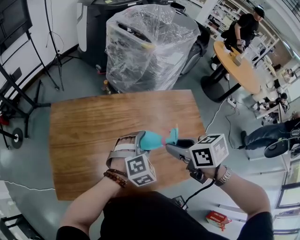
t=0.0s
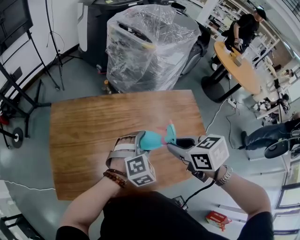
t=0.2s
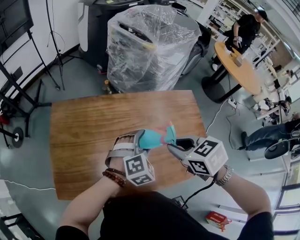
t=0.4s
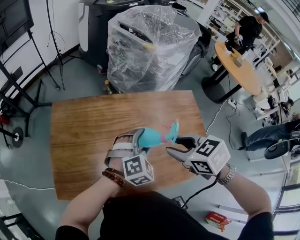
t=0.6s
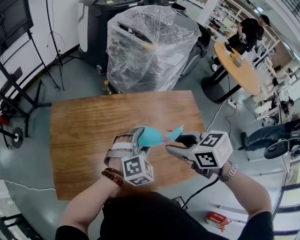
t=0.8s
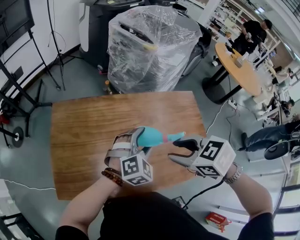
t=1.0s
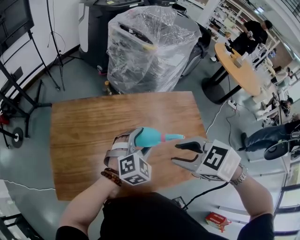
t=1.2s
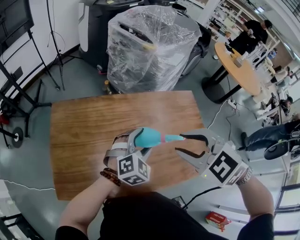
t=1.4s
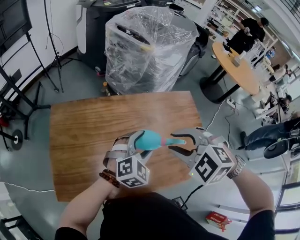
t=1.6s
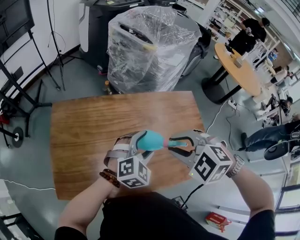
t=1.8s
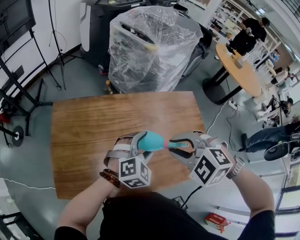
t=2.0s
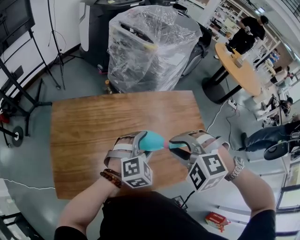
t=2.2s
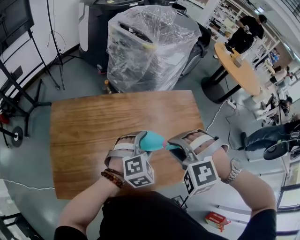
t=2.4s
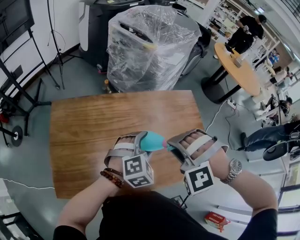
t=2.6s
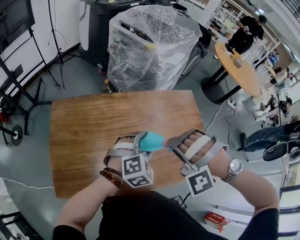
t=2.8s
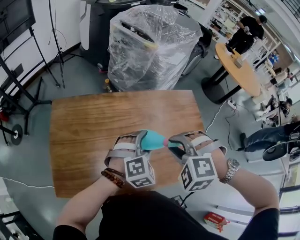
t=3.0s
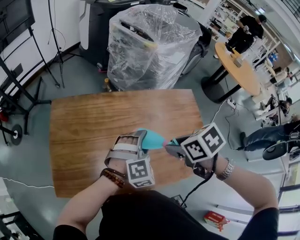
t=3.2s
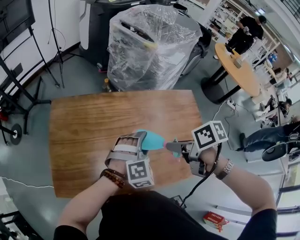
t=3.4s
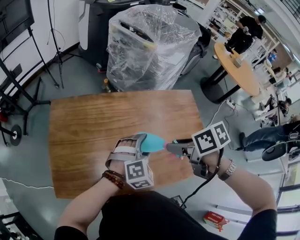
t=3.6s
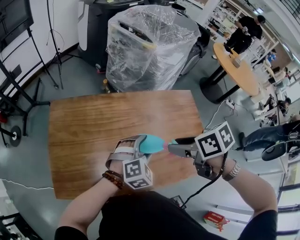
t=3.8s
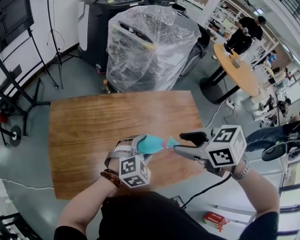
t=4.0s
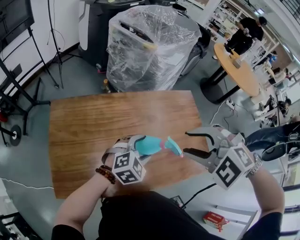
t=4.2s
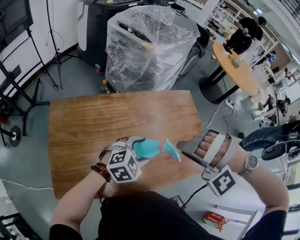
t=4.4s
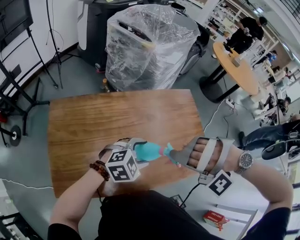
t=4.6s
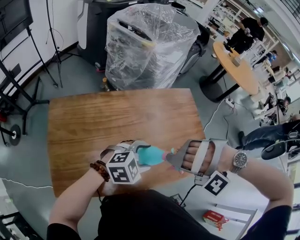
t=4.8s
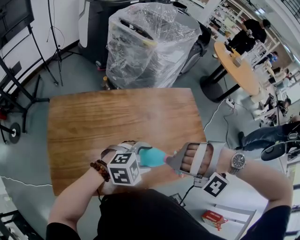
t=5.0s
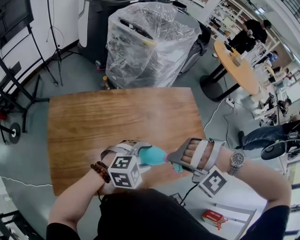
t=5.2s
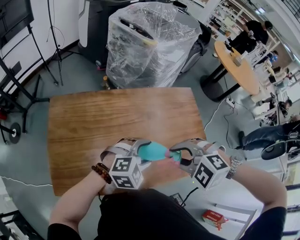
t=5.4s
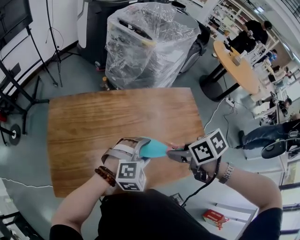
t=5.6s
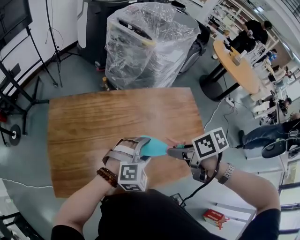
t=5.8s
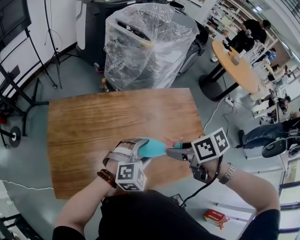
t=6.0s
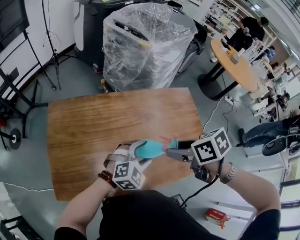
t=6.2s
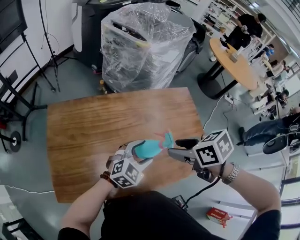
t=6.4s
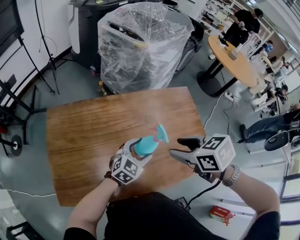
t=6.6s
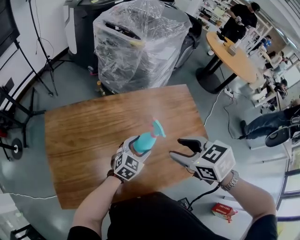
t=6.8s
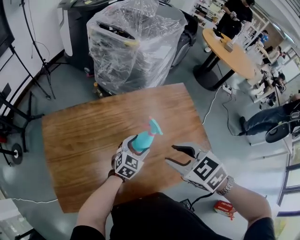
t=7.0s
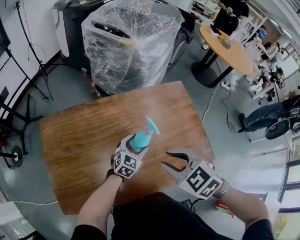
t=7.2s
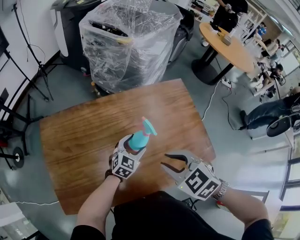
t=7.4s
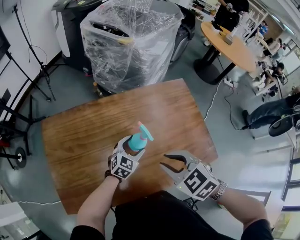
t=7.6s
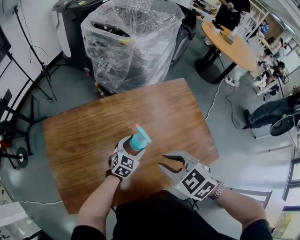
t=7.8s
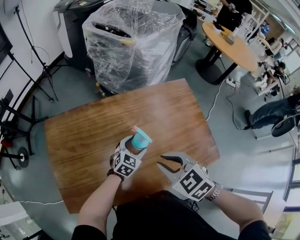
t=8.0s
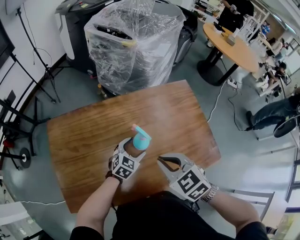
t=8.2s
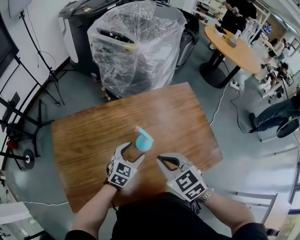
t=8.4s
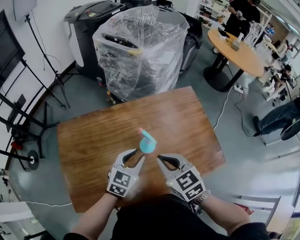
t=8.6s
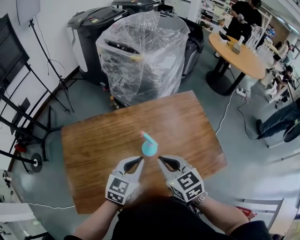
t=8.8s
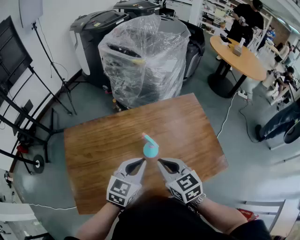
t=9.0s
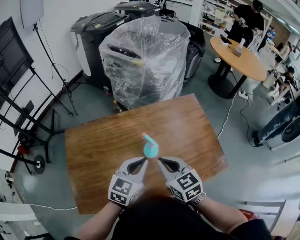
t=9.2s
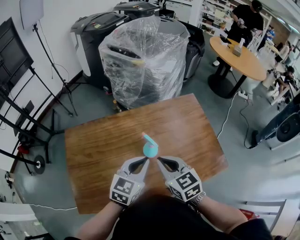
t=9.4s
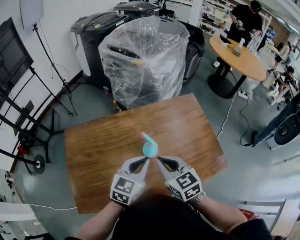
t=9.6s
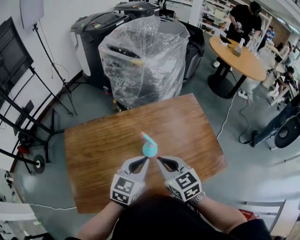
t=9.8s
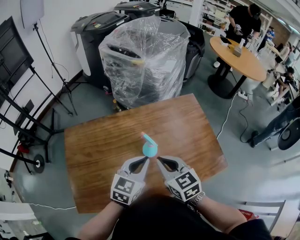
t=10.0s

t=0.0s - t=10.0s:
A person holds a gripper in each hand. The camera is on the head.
t=0.0s - t=1.4s: The right gripper heads upward, covering approximately 10 cm, and twists roughly 50 degrees counterclockwise, seen from behind.
t=1.4s - t=2.8s: The right gripper travels downward by approximately 5 cm, and rolls counterclockwise, seen from behind, by approximately 60 degrees.
t=2.8s - t=4.2s: The right gripper travels upward by about 10 cm, swivels approximately 40 degrees, and opens its fingers.
t=4.2s - t=5.8s: The right gripper goes roughly 10 cm downward, and twists some 90 degrees clockwise, seen from behind.
t=5.8s - t=7.2s: The left gripper moves downward and forward, about 15 cm, and rotates roughly 40 degrees; the right gripper twists some 50 degrees counterclockwise, seen from behind.
t=7.2s - t=8.6s: The right gripper changes its angle by approximately 20 degrees, and closes its fingers; the left gripper moves upward and to the left, approximately 10 cm, and closes.
t=8.6s - t=10.0s: The left gripper heads upward, covering approximately 5 cm.

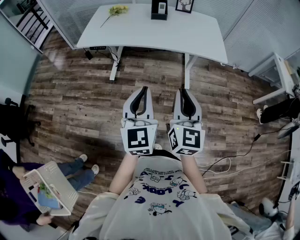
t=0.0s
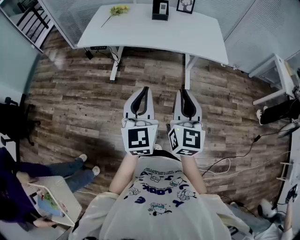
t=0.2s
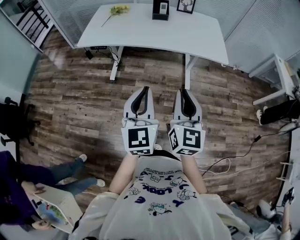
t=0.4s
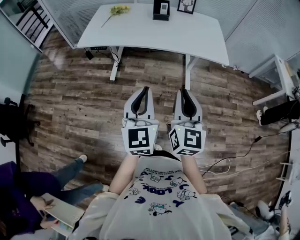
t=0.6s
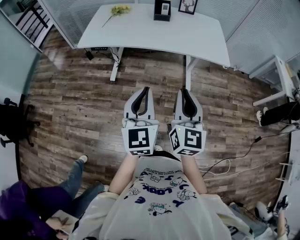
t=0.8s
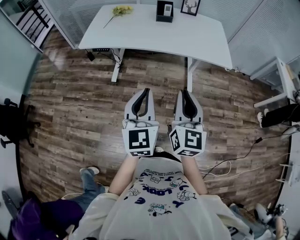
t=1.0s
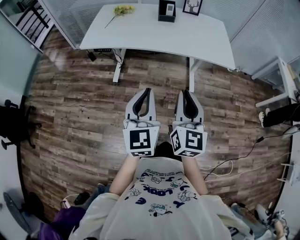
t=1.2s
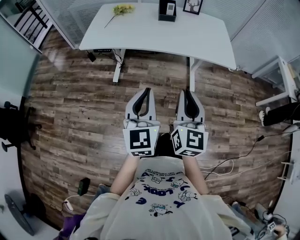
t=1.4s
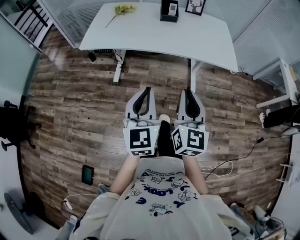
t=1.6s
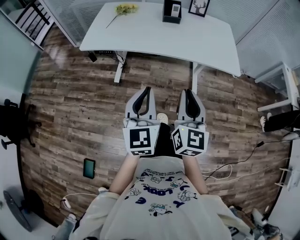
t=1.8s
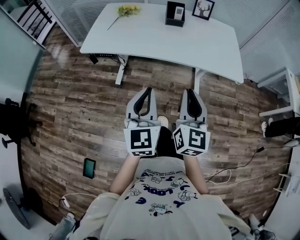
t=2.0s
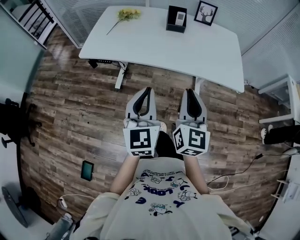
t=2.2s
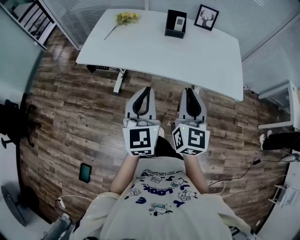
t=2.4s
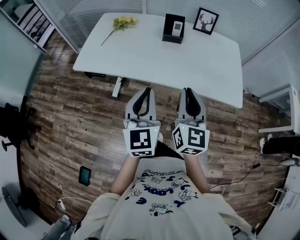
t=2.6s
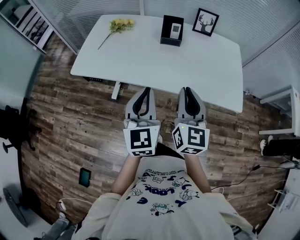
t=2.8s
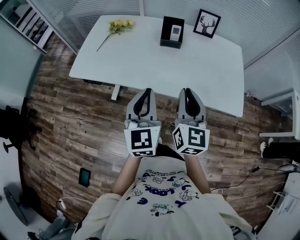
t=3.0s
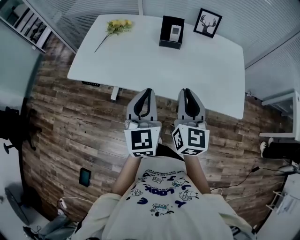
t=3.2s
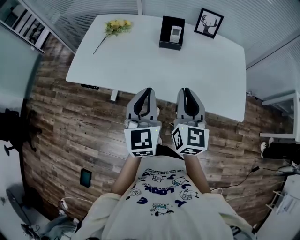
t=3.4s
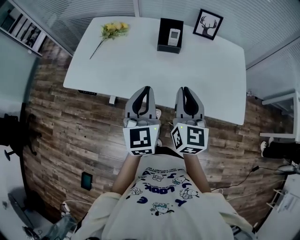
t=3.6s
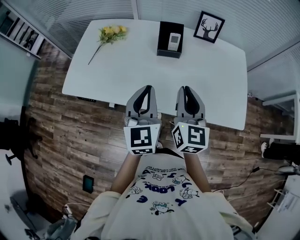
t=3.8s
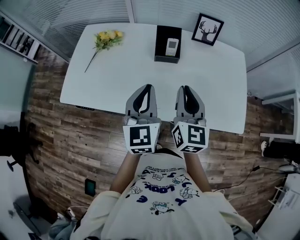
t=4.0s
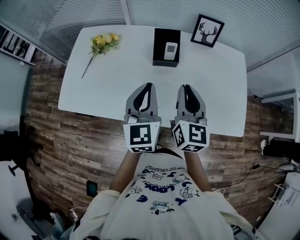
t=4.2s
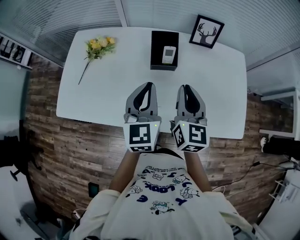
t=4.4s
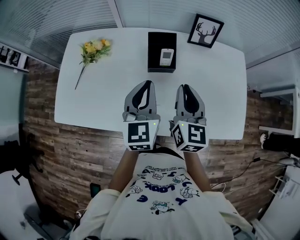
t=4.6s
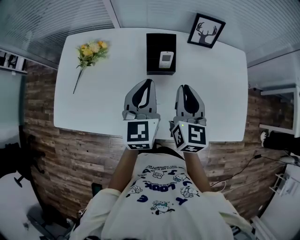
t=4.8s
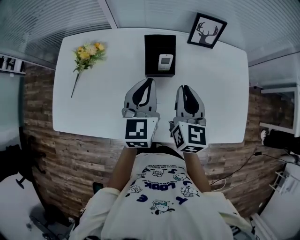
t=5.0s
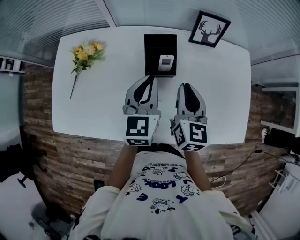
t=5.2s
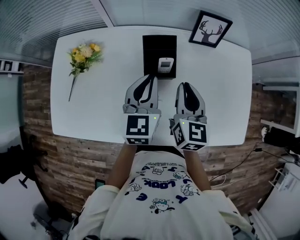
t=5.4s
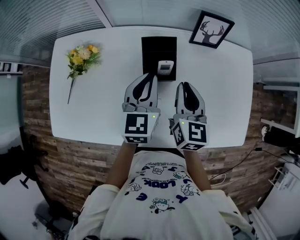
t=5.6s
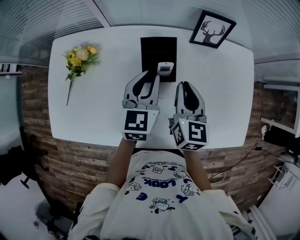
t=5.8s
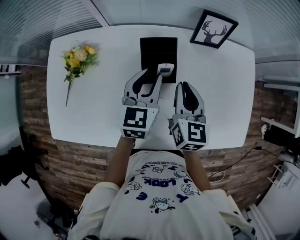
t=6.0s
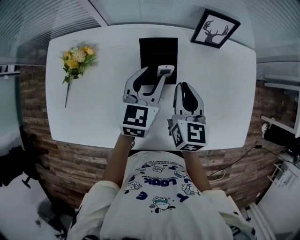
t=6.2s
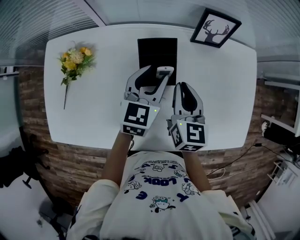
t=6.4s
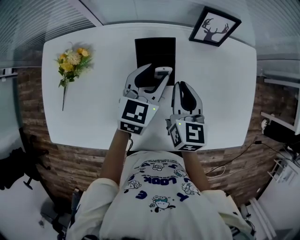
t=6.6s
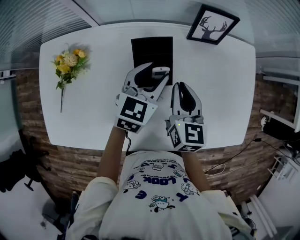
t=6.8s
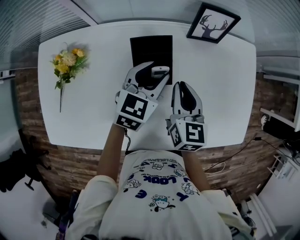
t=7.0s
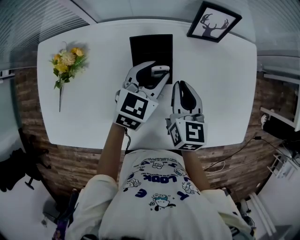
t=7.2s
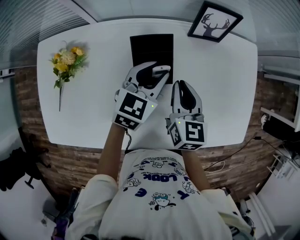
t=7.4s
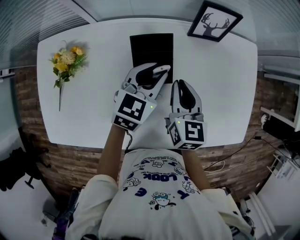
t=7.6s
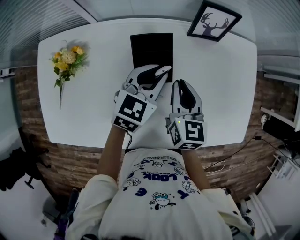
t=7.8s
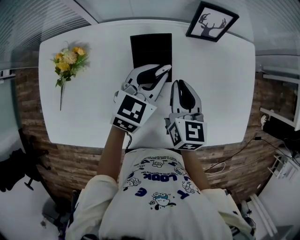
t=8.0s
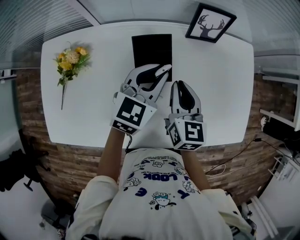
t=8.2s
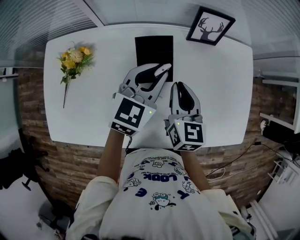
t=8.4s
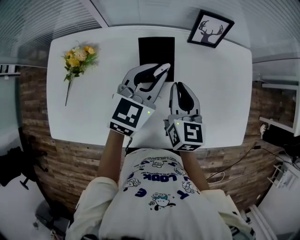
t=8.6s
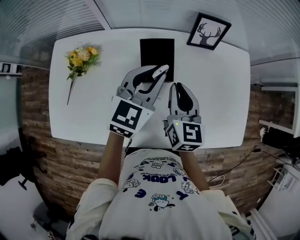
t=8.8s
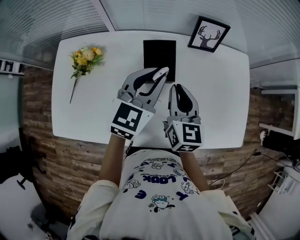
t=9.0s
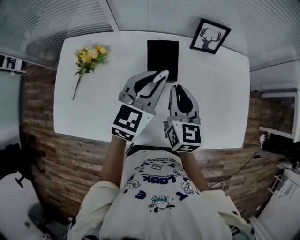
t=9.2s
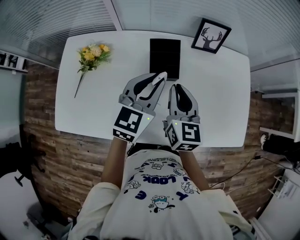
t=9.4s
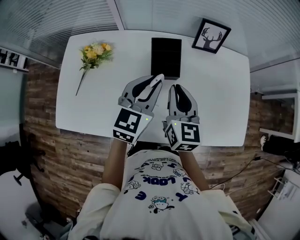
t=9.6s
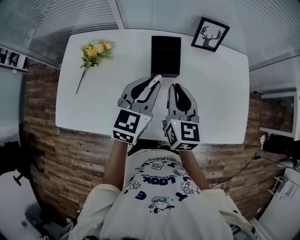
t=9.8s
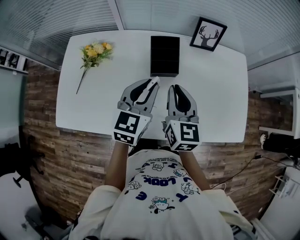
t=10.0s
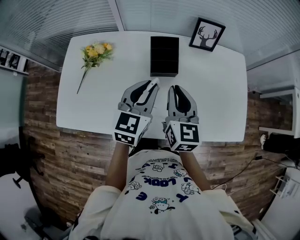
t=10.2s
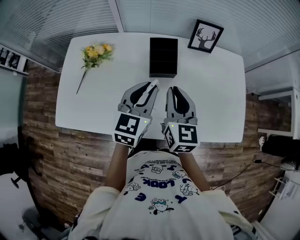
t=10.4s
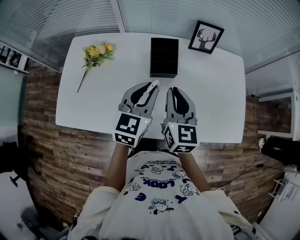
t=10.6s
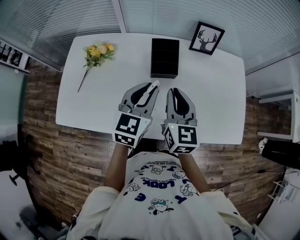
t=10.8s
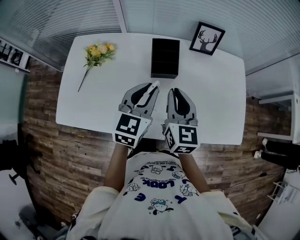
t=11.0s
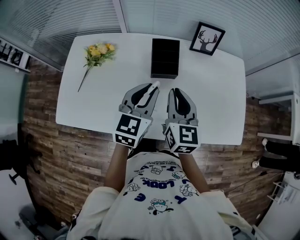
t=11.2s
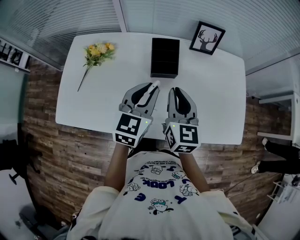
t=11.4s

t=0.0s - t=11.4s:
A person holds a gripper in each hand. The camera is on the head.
t=0.0s - t=1.4s: Both grippers travel together forward and to the left, some 10 cm.
t=1.4s - t=2.8s: The two grippers go about 30 cm forward.
t=2.8s - t=4.2s: The grippers both shift forward by about 25 cm.
t=4.2s - t=5.6s: The right gripper shifts about 20 cm forward and downward. Meanwhile the left gripper goes about 20 cm forward.
t=5.6s - t=7.2s: The right gripper heads downward, covering about 5 cm; the left gripper travels forward and downward by about 10 cm, swivels some 30 degrees, and opens.
t=7.2s - t=8.6s: The right gripper shifts by some 5 cm. The left gripper is displaced upward by some 10 cm, and closes its fingers.
t=8.6s - t=10.0s: The left gripper moves backward, approximately 15 cm. The right gripper is displaced backward and upward by roughly 10 cm.
t=10.0s - t=11.4s: The grippers move only a little.

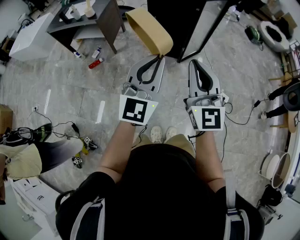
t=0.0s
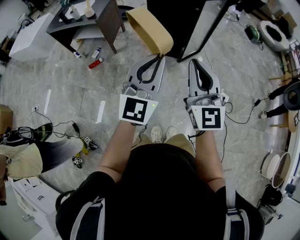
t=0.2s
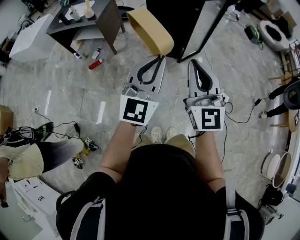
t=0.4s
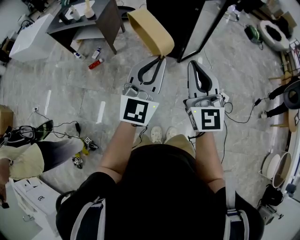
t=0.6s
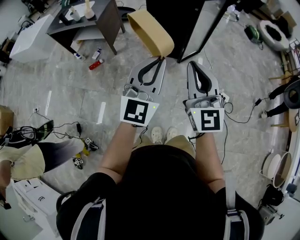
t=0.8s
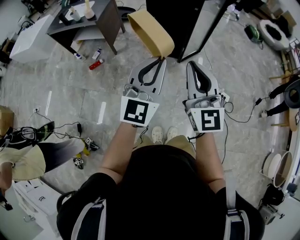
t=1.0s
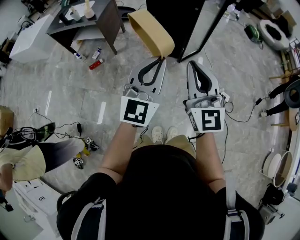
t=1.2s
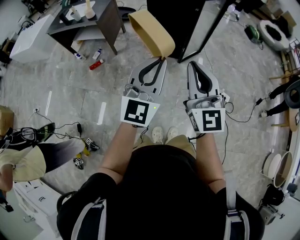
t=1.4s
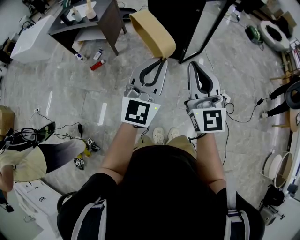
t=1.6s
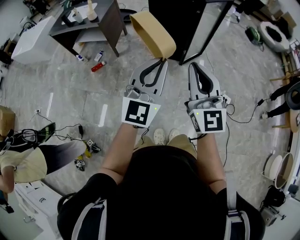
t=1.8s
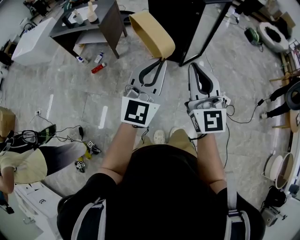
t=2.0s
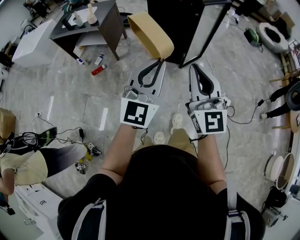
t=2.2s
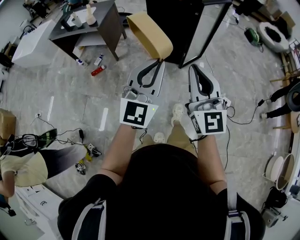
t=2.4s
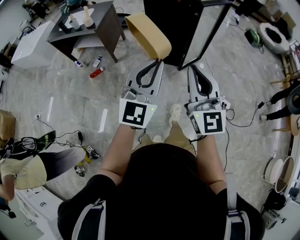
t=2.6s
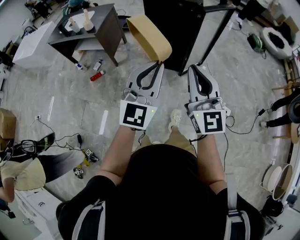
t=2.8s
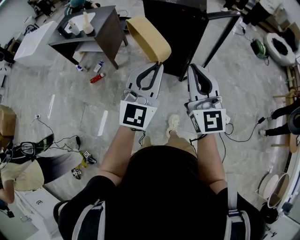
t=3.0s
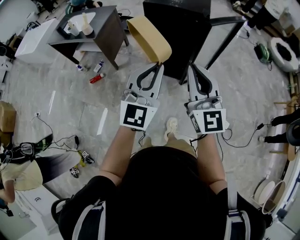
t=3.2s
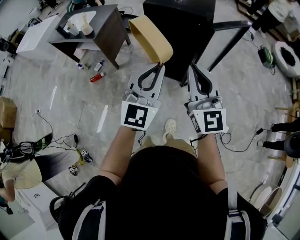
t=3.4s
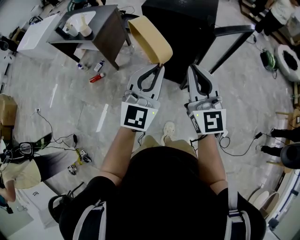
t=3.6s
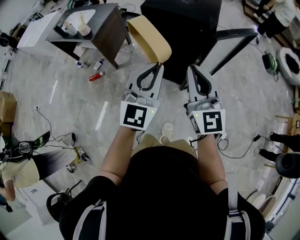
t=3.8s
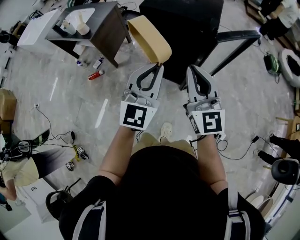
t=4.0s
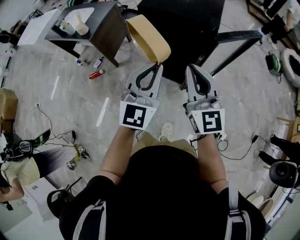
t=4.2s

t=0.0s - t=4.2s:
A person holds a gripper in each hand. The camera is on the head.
t=0.0s - t=1.4s: The grippers move only a little.
t=1.4s - t=2.8s: Both grippers travel together forward, roughly 10 cm.
t=2.8s - t=4.2s: The two grippers go about 25 cm forward.
